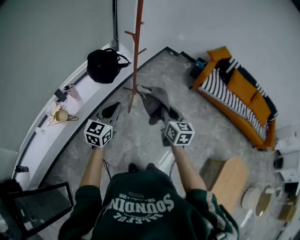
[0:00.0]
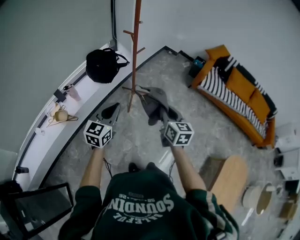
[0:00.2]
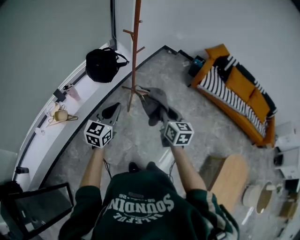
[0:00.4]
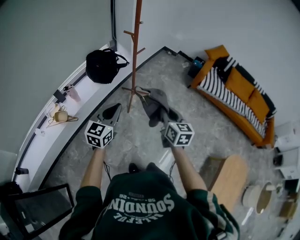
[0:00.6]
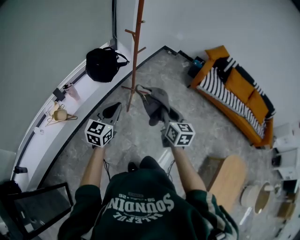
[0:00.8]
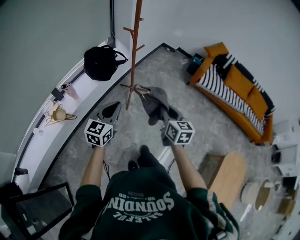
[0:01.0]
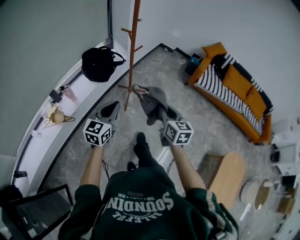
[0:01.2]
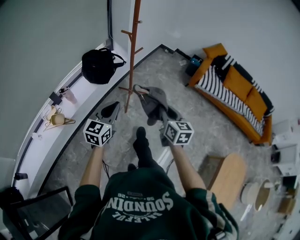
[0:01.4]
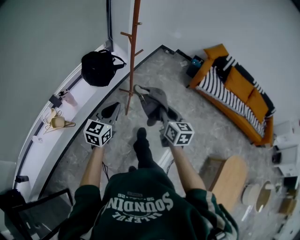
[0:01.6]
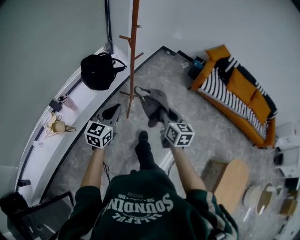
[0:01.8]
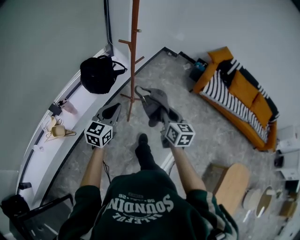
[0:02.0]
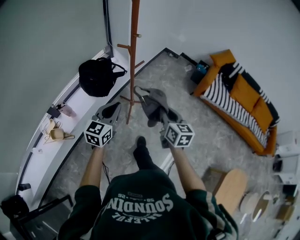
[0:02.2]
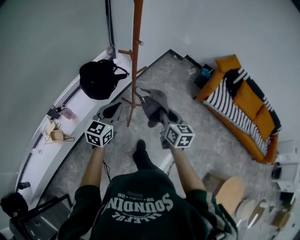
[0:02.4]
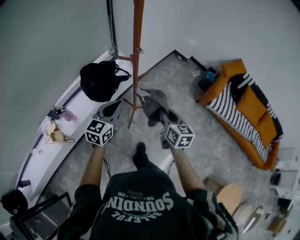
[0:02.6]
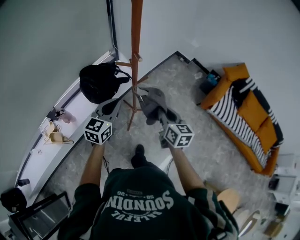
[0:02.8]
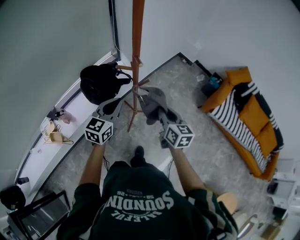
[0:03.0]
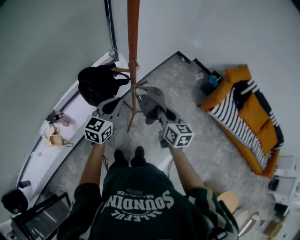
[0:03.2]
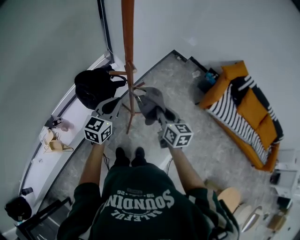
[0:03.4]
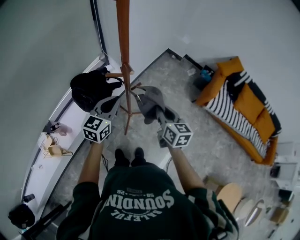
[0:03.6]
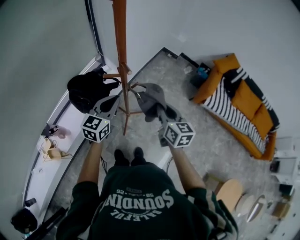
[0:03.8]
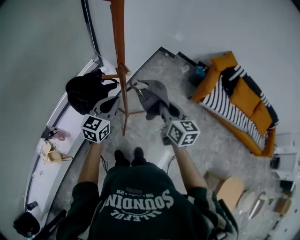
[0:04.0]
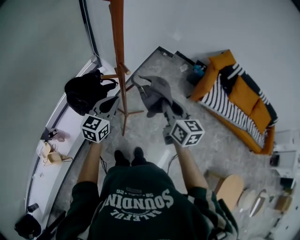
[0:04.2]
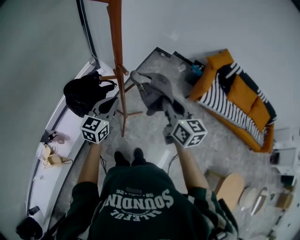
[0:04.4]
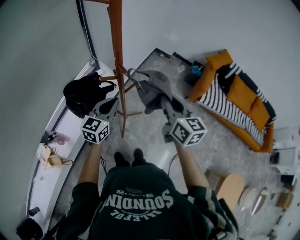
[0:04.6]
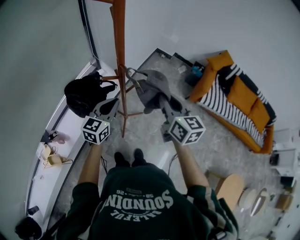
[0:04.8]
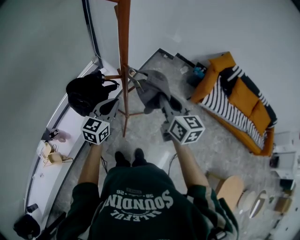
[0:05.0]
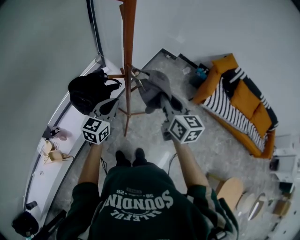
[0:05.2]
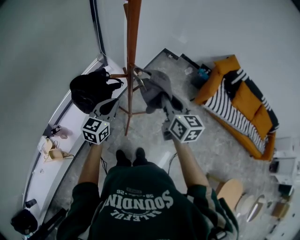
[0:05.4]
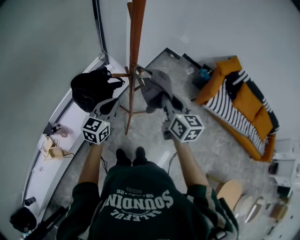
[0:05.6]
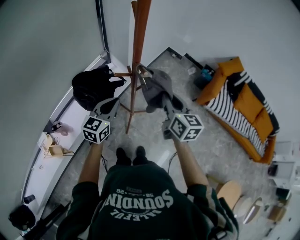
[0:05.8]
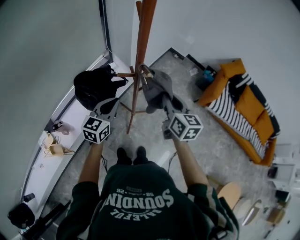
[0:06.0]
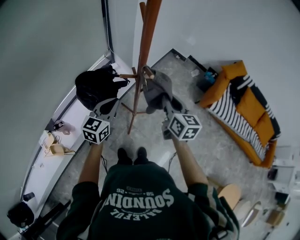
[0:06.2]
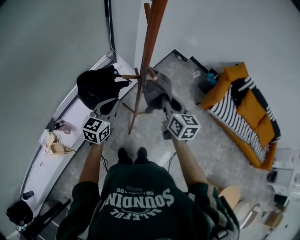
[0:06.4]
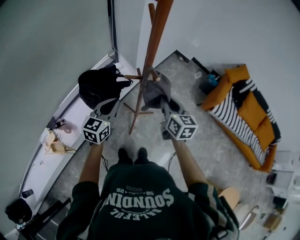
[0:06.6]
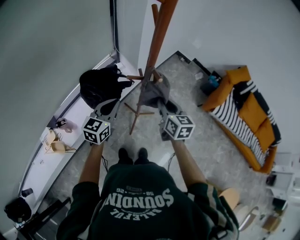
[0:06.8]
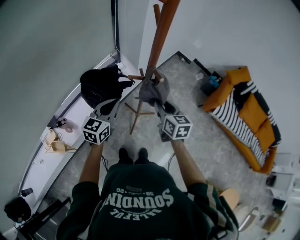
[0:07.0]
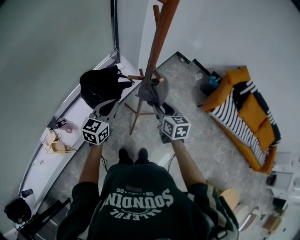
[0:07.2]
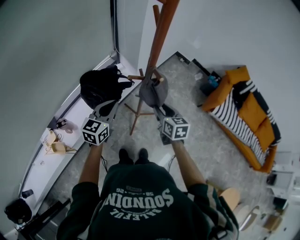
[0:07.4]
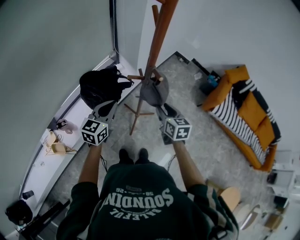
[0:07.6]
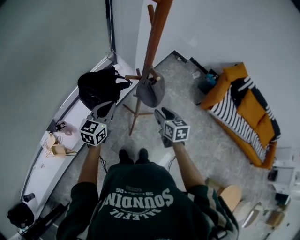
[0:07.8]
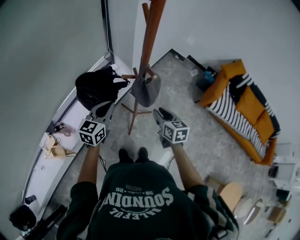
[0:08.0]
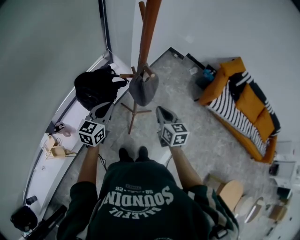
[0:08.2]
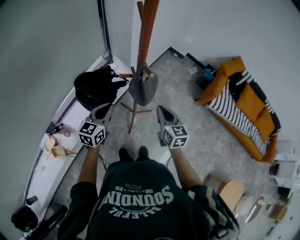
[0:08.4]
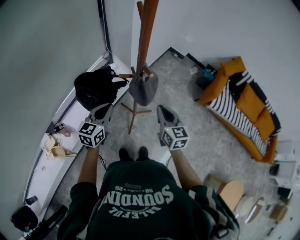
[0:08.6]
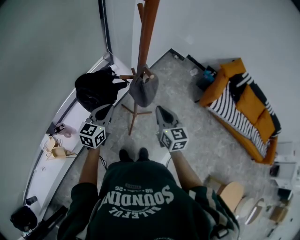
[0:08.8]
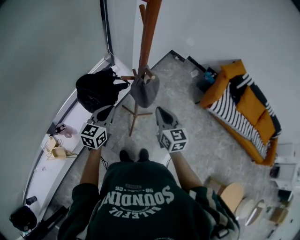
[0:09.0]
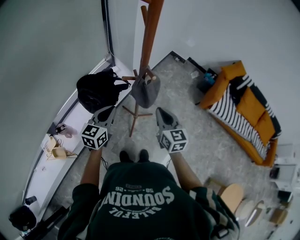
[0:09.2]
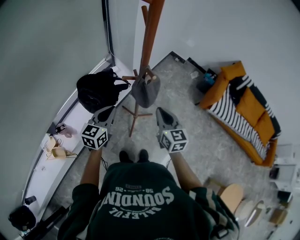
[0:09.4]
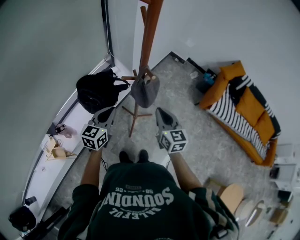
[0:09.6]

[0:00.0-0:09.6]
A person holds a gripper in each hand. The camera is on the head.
0:00.0 to 0:01.6: The left gripper goes approximately 5 cm forward.
0:01.6 to 0:03.2: The grippers both shift forward by roughly 35 cm.
0:03.2 to 0:04.8: The right gripper goes about 15 cm upward.
0:04.8 to 0:06.4: The right gripper shifts about 10 cm downward and to the left; the left gripper heads to the left, covering some 10 cm.
0:06.4 to 0:08.0: The right gripper goes about 10 cm downward.
0:08.0 to 0:09.6: The right gripper travels upward by approximately 5 cm, and closes.

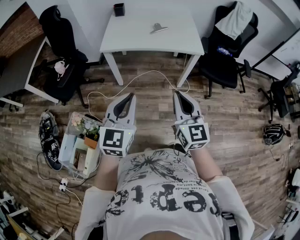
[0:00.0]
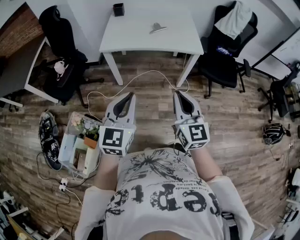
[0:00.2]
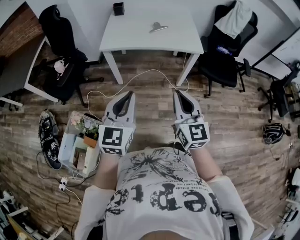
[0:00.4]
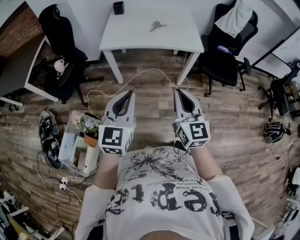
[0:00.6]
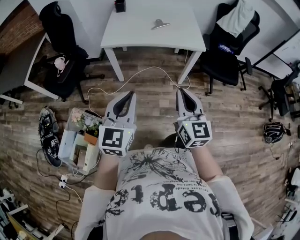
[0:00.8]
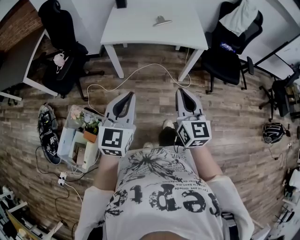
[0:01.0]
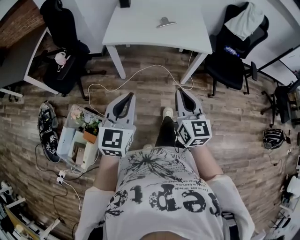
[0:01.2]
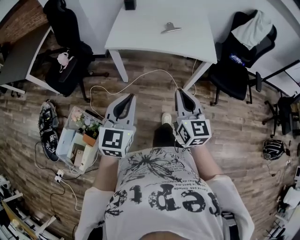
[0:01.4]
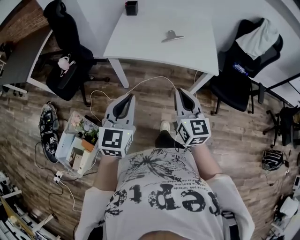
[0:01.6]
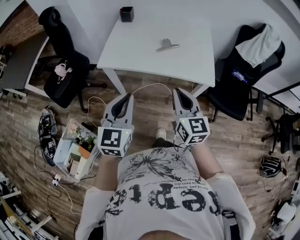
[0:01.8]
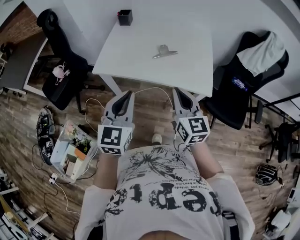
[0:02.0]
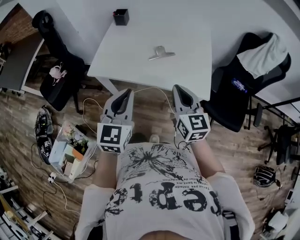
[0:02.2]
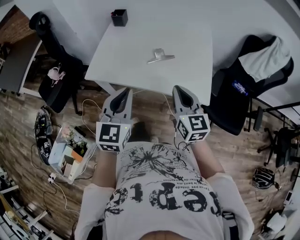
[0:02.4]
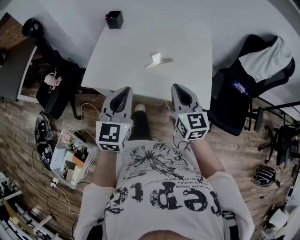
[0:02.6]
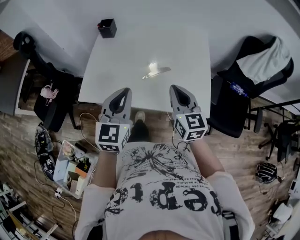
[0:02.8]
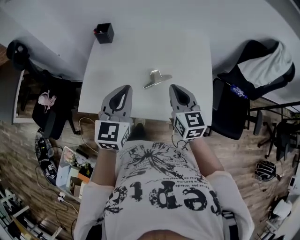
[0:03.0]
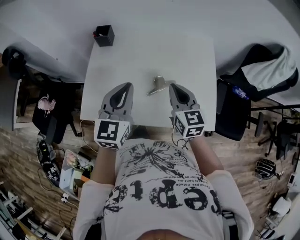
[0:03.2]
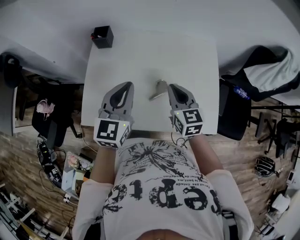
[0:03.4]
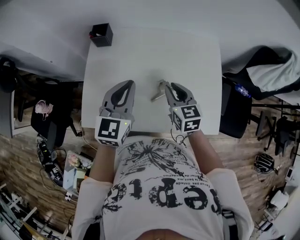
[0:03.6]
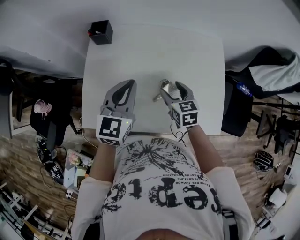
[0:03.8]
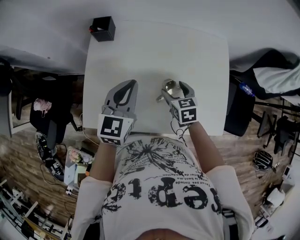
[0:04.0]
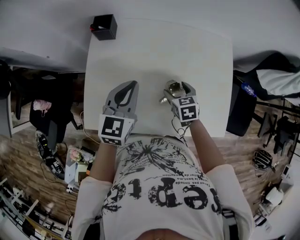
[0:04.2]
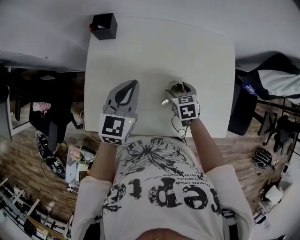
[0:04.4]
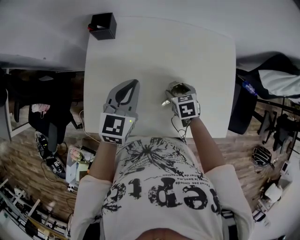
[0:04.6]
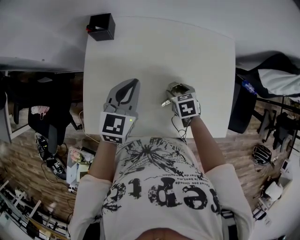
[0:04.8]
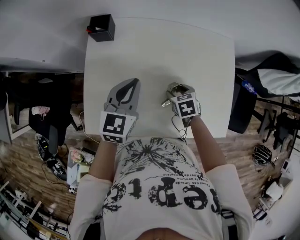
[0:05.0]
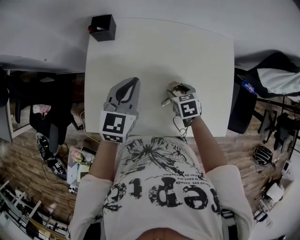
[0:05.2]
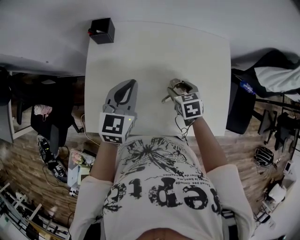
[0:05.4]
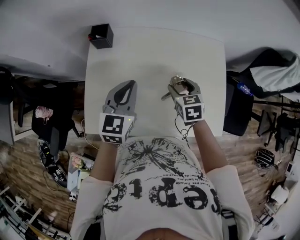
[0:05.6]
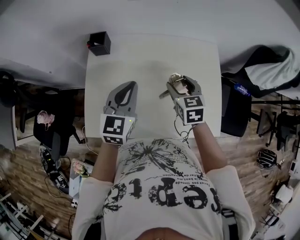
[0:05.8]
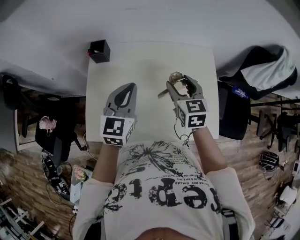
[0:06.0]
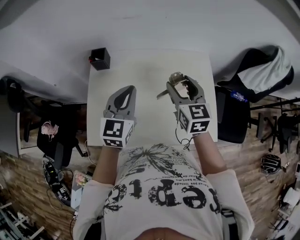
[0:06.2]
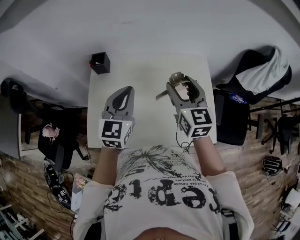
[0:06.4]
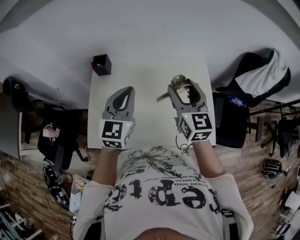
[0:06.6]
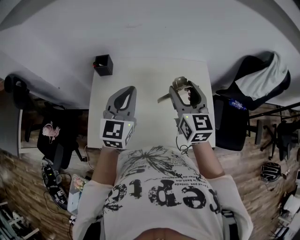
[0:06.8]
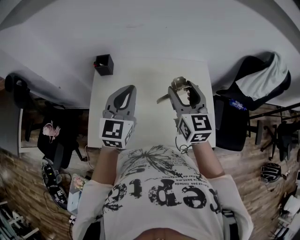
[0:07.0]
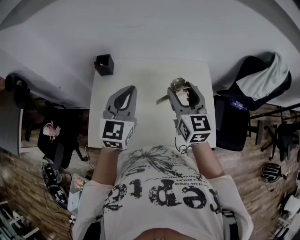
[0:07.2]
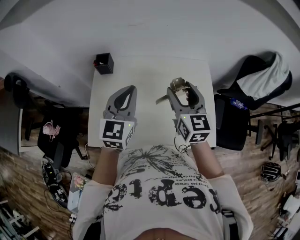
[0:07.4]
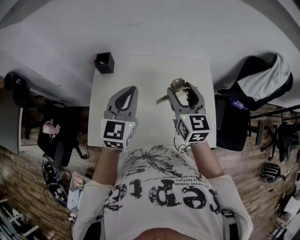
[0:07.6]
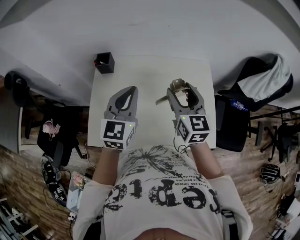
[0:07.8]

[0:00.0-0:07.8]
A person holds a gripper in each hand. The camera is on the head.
0:00.0 to 0:01.6: Both grippers travel together forward, roughly 20 cm.
0:01.6 to 0:03.2: The pair of grippers is taken forward, about 50 cm.
0:03.2 to 0:04.6: The right gripper moves downward, approximately 25 cm, angles its fingers downward, by some 40 degrees, and opens. The left gripper is displaced forward, downward and to the left by some 20 cm.
0:04.6 to 0:06.2: The left gripper moves upward and to the right, about 15 cm. Meanwhile the right gripper shifts some 30 cm upward, and tips its fingers upward by approximately 40 degrees.

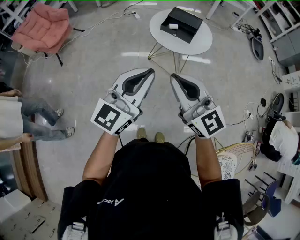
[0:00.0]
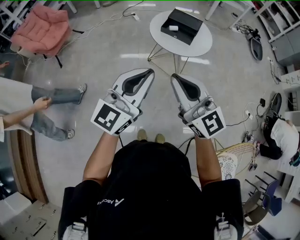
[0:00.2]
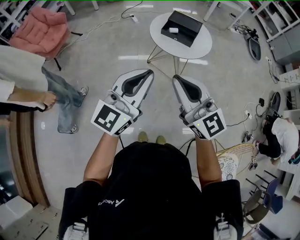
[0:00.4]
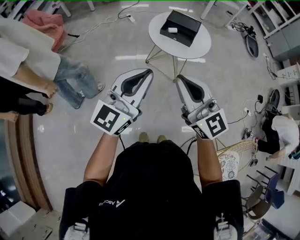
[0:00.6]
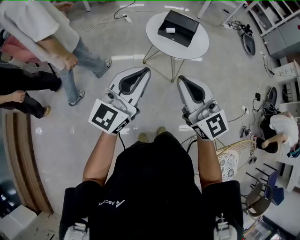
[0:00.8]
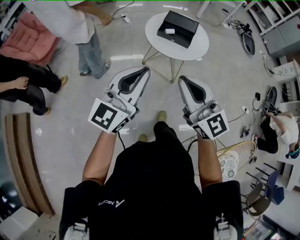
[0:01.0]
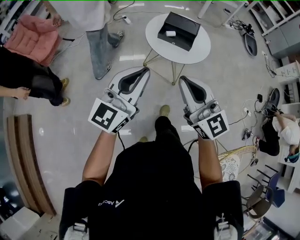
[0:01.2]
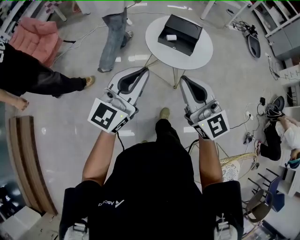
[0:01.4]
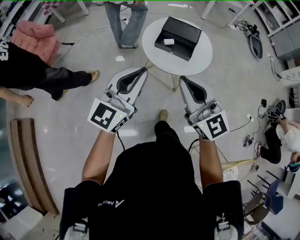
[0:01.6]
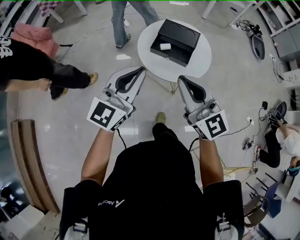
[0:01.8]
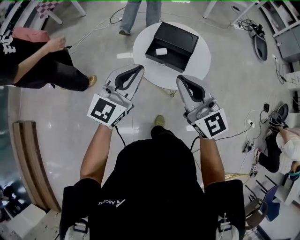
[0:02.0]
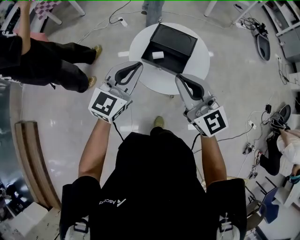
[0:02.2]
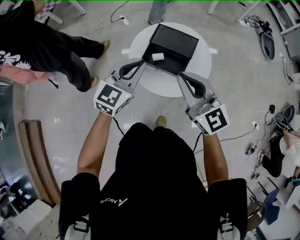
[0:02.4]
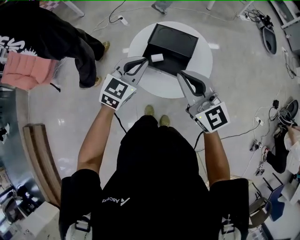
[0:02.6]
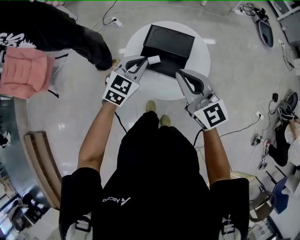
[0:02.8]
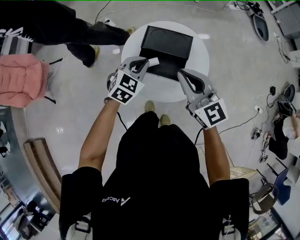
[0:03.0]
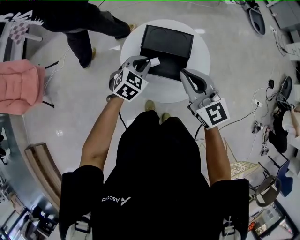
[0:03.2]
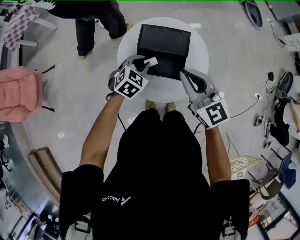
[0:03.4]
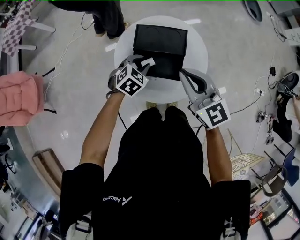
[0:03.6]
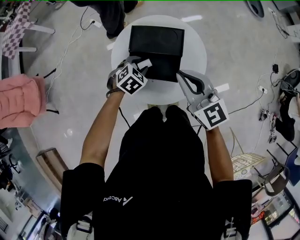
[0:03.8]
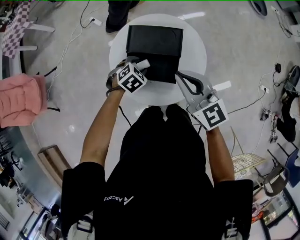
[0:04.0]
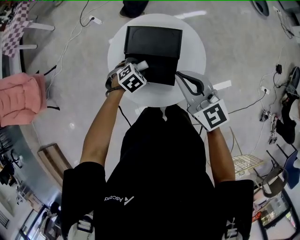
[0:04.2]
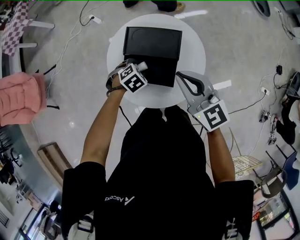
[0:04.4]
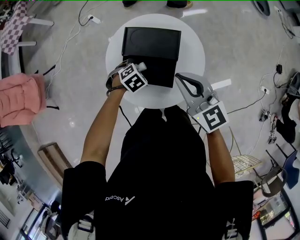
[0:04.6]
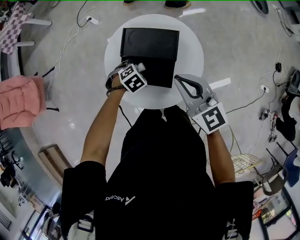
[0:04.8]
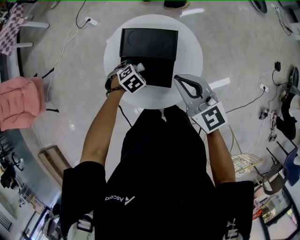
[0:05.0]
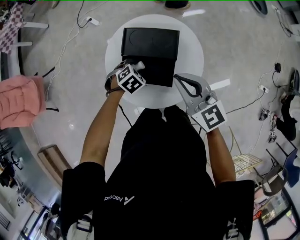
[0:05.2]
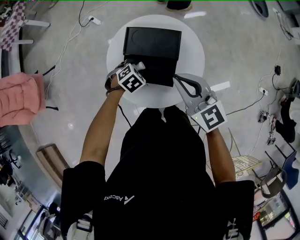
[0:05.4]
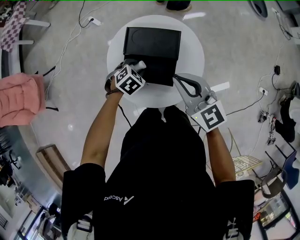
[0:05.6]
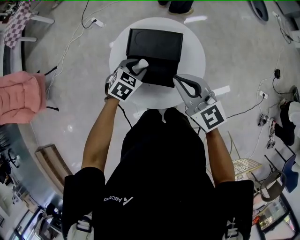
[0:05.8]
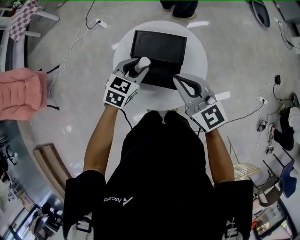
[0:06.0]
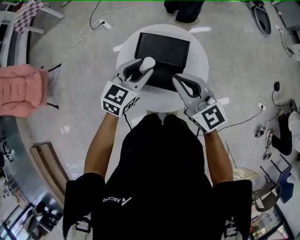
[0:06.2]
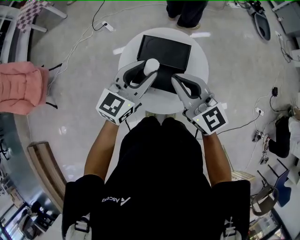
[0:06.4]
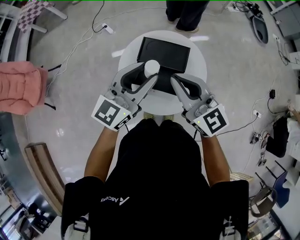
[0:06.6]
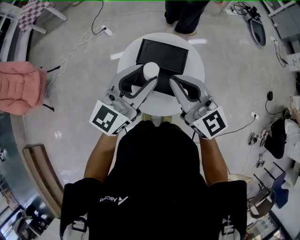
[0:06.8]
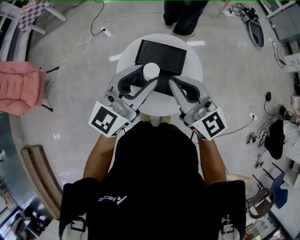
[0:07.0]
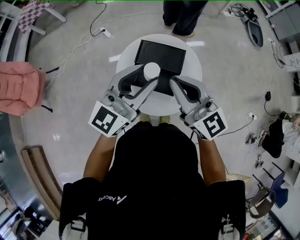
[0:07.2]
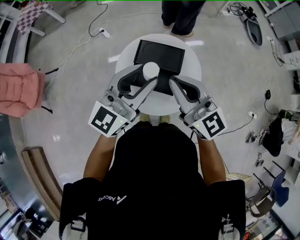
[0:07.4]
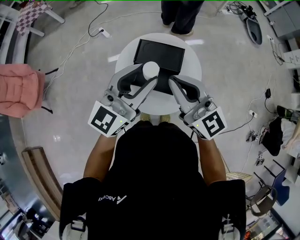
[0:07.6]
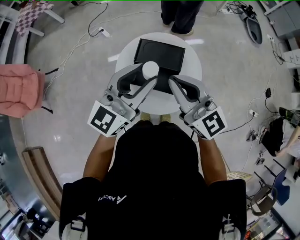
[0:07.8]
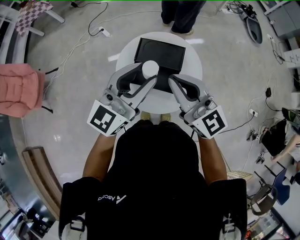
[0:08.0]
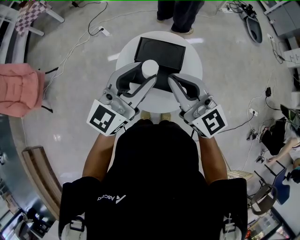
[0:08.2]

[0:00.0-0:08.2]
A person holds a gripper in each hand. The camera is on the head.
0:00.0 to 0:01.6: Both grippers move forward, roughly 20 cm.
0:01.6 to 0:03.2: The two grippers go about 40 cm forward and downward. The left gripper points its fingers about 50 degrees further downward.
0:03.2 to 0:05.0: The left gripper heads downward, covering some 15 cm, tilts its fingers roughly 30 degrees downward, and opens. Meanwhile the right gripper ends up about 10 cm from where it was.
0:05.0 to 0:06.6: The right gripper heads upward, covering about 10 cm; the left gripper shifts approximately 35 cm upward, and points its fingers approximately 70 degrees further upward.
0:06.6 to 0:08.2: The left gripper is displaced upward by some 5 cm.
